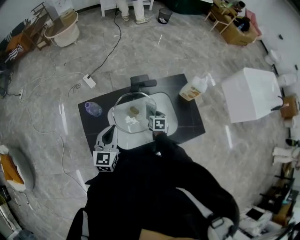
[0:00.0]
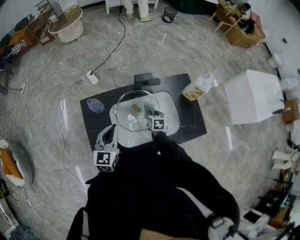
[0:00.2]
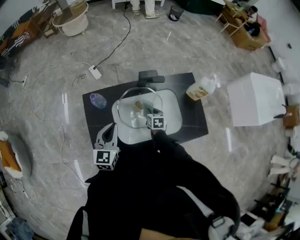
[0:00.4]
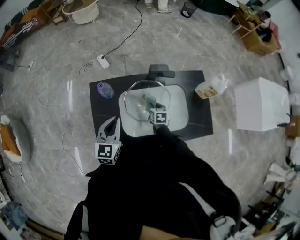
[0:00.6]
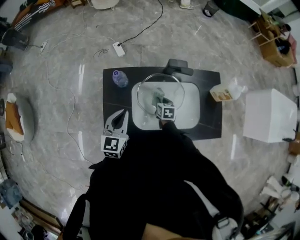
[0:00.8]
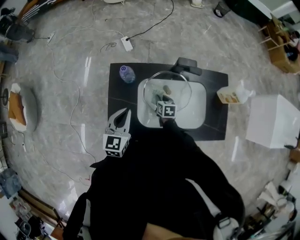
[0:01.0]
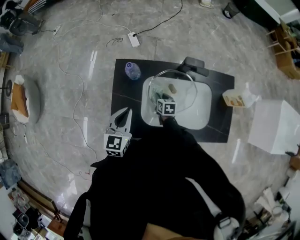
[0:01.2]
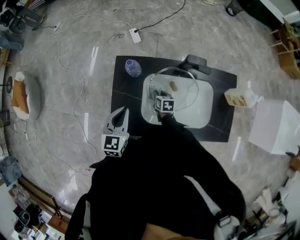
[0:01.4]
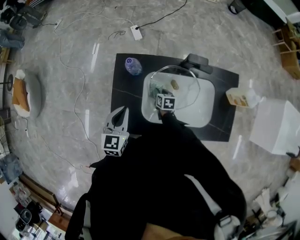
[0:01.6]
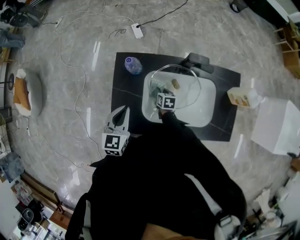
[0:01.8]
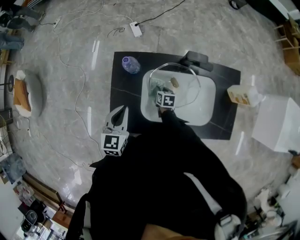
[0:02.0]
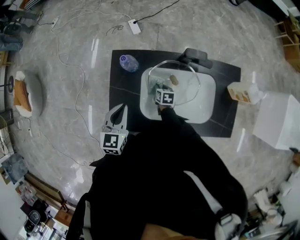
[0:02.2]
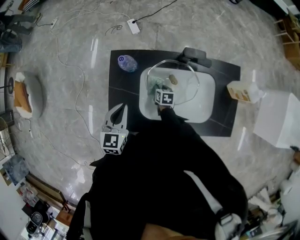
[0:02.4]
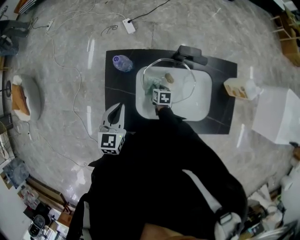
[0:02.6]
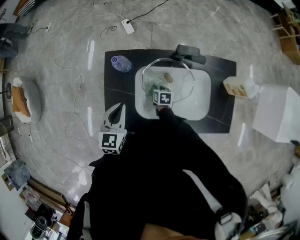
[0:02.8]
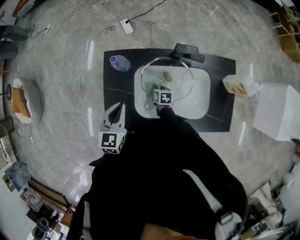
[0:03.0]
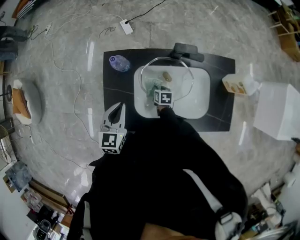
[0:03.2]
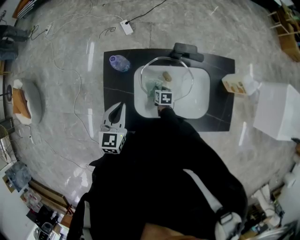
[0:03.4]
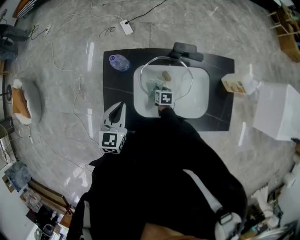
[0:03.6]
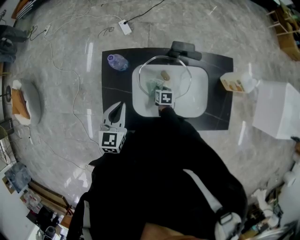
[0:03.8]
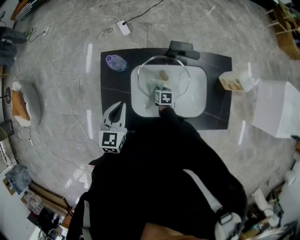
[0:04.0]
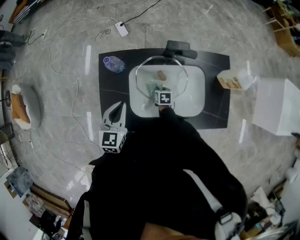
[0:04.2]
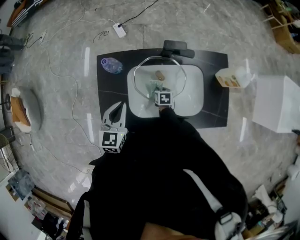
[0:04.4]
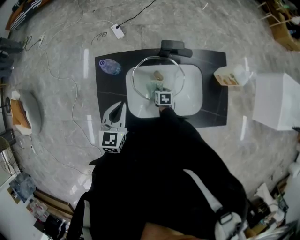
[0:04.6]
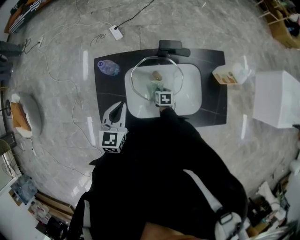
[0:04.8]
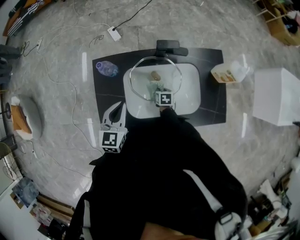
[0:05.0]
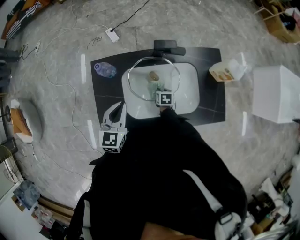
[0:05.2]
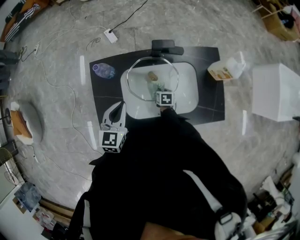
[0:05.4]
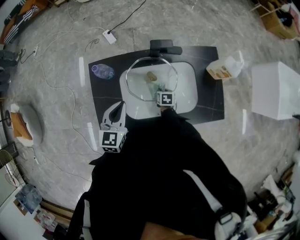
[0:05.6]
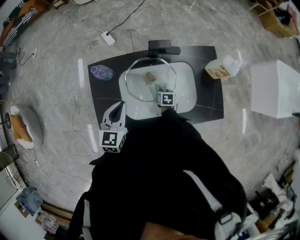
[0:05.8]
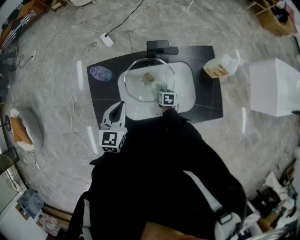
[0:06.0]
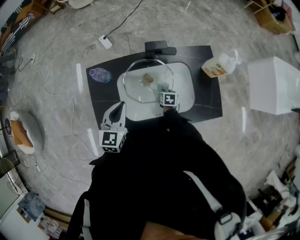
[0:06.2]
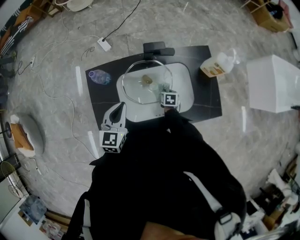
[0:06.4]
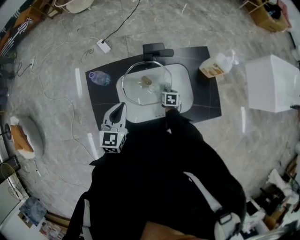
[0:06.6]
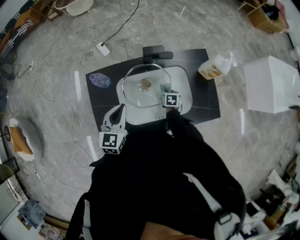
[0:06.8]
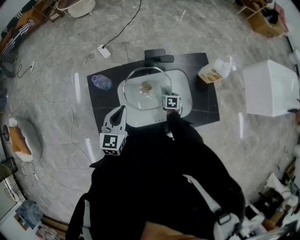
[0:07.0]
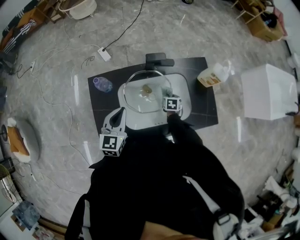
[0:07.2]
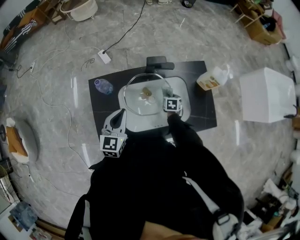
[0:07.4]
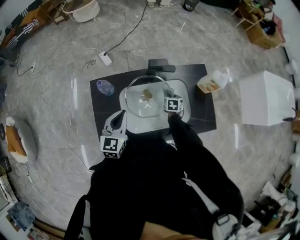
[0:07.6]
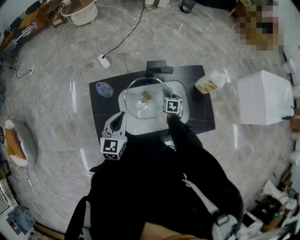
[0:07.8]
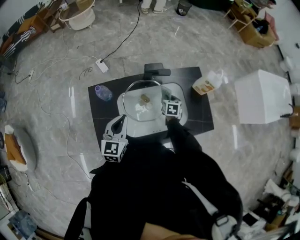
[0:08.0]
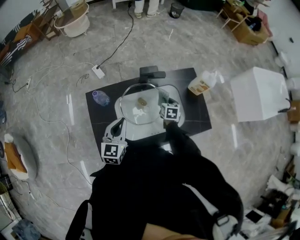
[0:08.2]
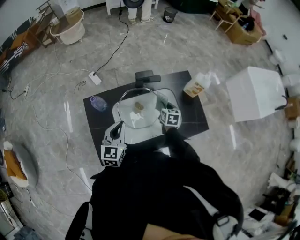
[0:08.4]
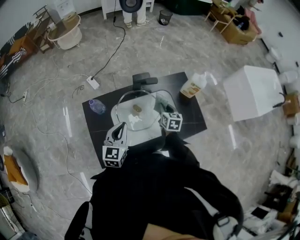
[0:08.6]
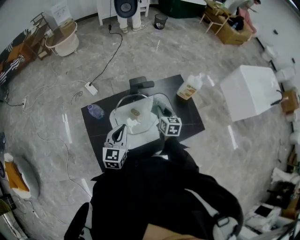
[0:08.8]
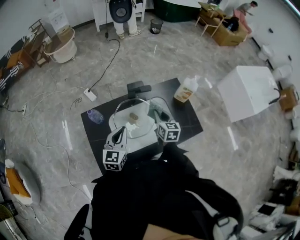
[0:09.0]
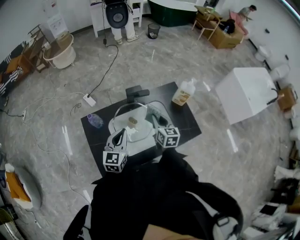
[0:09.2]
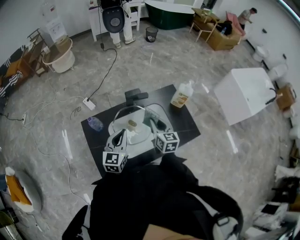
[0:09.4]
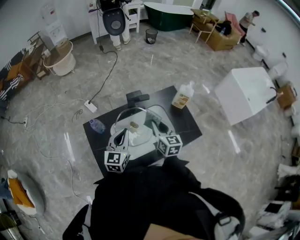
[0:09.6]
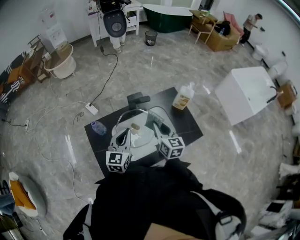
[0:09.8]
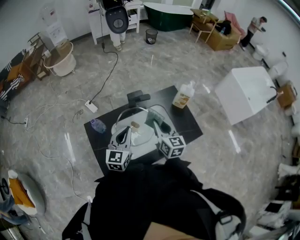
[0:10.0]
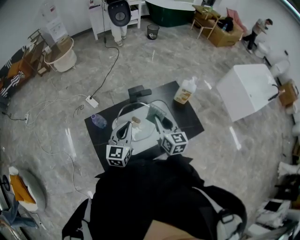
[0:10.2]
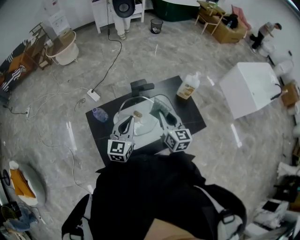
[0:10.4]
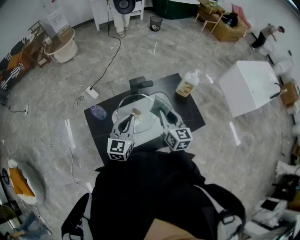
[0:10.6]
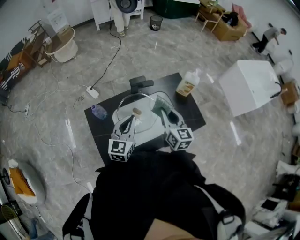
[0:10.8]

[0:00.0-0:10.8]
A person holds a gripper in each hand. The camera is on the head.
0:00.0 to 0:01.6: The right gripper moves about 20 cm, and rotates approximately 30 degrees, while the left gripper ends up approximately 10 cm from where it was, and changes its angle by approximately 20 degrees.
0:01.6 to 0:03.0: The right gripper moves approximately 5 cm.
0:03.0 to 0:04.6: There are only small adjustments of the grippers.
0:04.6 to 0:06.2: The right gripper shifts about 10 cm to the right.
0:06.2 to 0:07.8: The right gripper travels upward and forward by approximately 10 cm.
0:07.8 to 0:09.2: The left gripper goes about 5 cm to the right. The right gripper is displaced upward by some 20 cm, and tilts its fingers approximately 30 degrees upward.
0:09.2 to 0:10.8: The right gripper travels upward by about 10 cm.

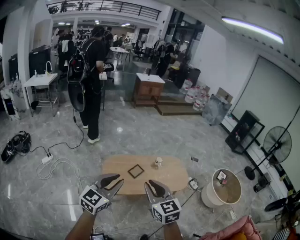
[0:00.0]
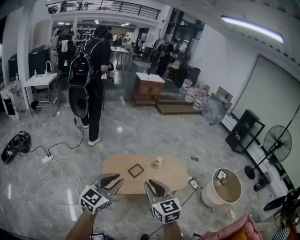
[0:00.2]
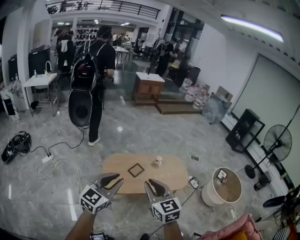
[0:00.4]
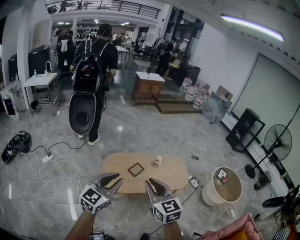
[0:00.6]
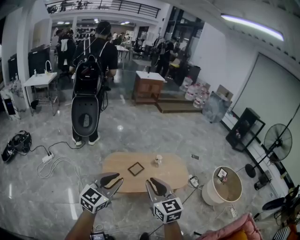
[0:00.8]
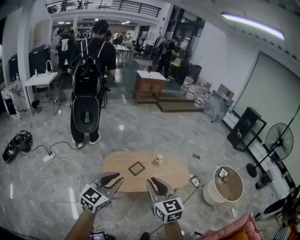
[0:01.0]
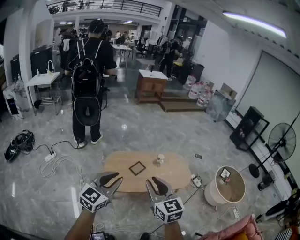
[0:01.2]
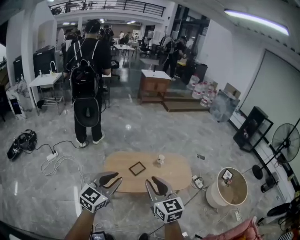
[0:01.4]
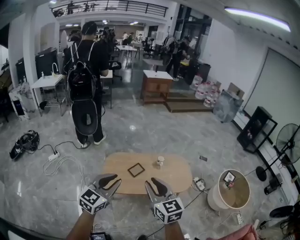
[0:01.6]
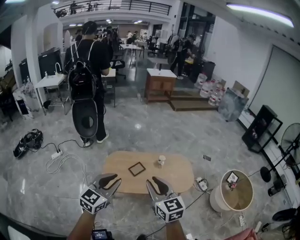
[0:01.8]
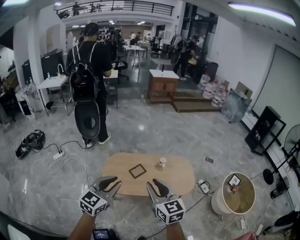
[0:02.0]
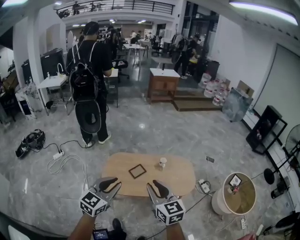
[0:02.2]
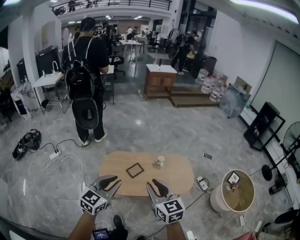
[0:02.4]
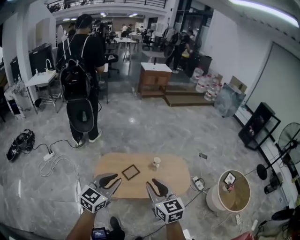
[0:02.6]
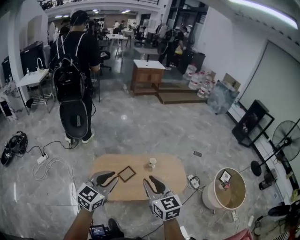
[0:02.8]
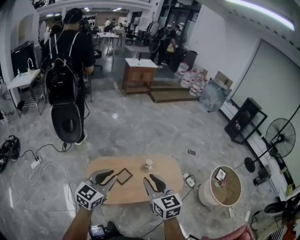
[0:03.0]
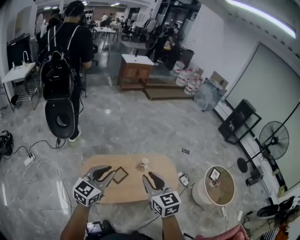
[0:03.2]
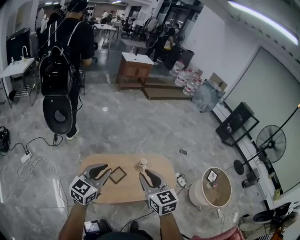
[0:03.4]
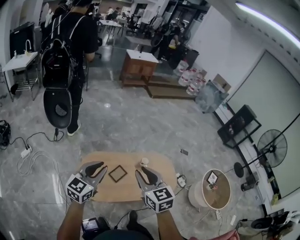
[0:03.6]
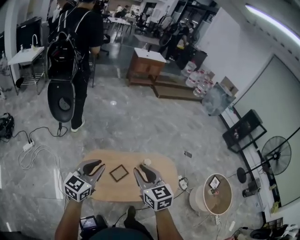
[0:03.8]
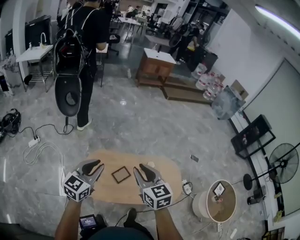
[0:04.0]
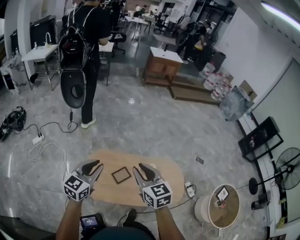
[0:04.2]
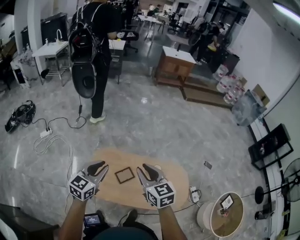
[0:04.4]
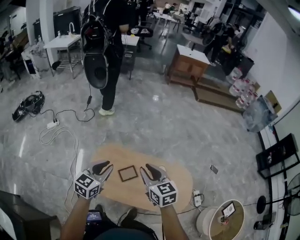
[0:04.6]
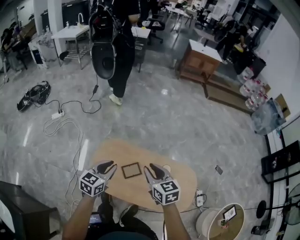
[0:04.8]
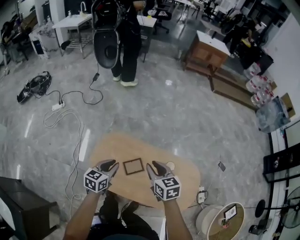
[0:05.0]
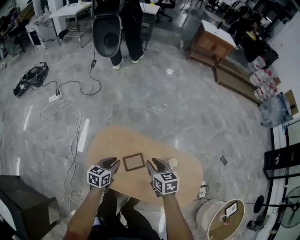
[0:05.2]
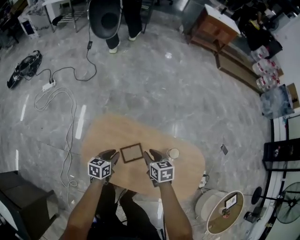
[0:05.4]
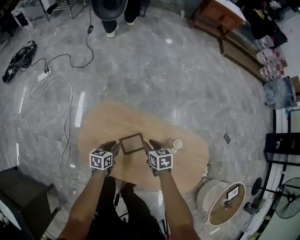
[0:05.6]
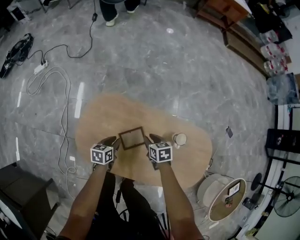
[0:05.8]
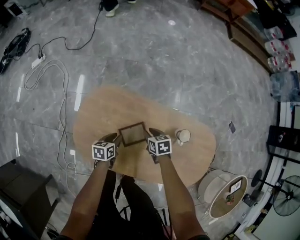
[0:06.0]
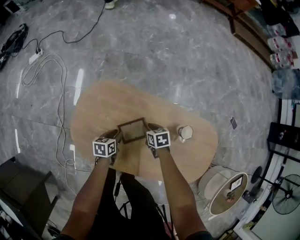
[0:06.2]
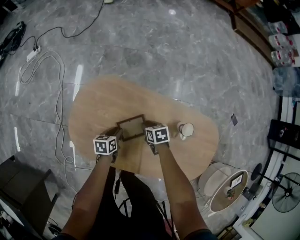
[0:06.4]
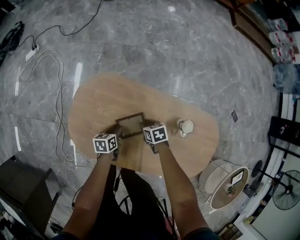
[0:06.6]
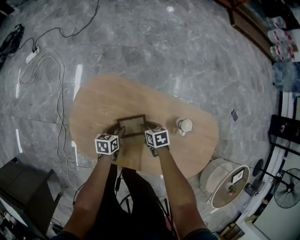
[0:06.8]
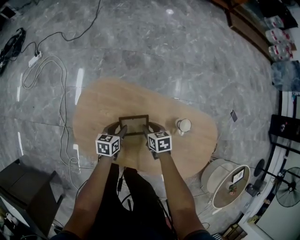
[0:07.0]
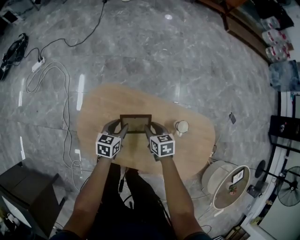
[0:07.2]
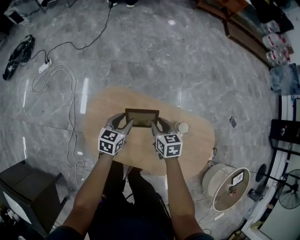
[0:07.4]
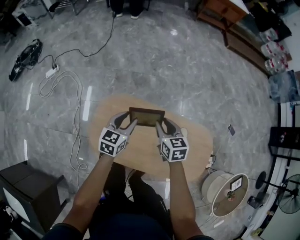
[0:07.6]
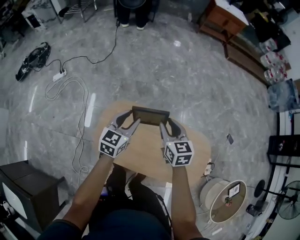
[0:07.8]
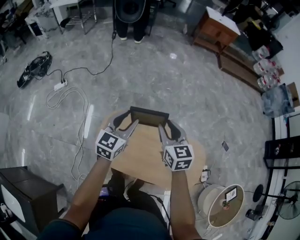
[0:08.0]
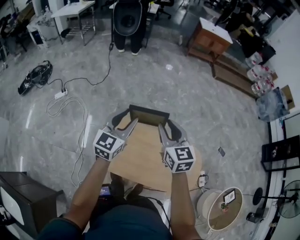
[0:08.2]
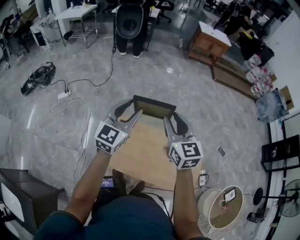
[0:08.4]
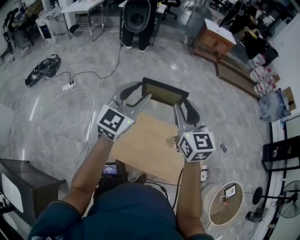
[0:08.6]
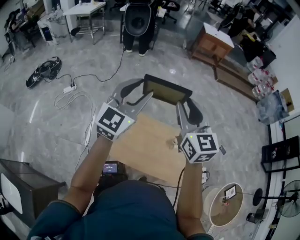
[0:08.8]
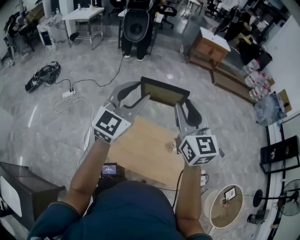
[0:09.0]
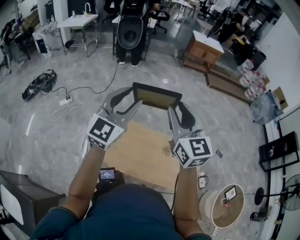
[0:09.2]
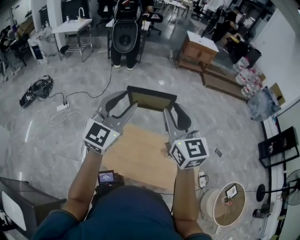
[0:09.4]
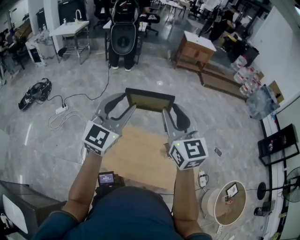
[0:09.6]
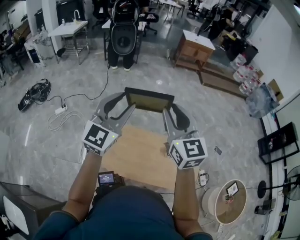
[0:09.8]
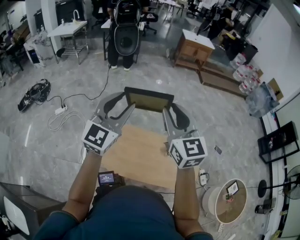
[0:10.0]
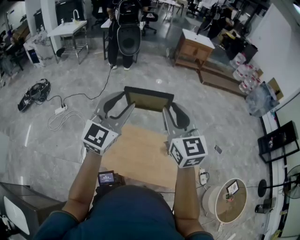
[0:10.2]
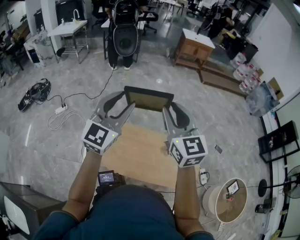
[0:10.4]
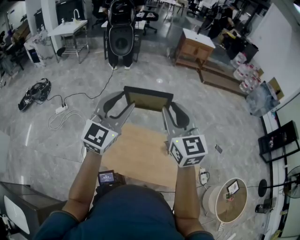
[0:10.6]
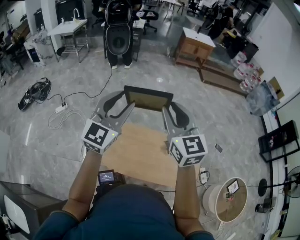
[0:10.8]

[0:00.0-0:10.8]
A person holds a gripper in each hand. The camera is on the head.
0:00.0 to 0:01.6: Both grippers travel together to the right, about 10 cm.
0:01.6 to 0:03.0: Both grippers travel together forward, approximately 20 cm.
0:03.0 to 0:04.6: The right gripper ends up about 25 cm from where it was, and turns by roughly 30 degrees; the left gripper shifts by approximately 20 cm, and rotates approximately 30 degrees.
0:04.6 to 0:06.2: Both grippers move downward, some 60 cm. The left gripper rotates some 50 degrees; the right gripper tips its fingers downward by about 40 degrees.
0:06.2 to 0:07.8: Both grippers travel together upward, some 40 cm. The right gripper rotates approximately 40 degrees. Meanwhile the left gripper changes its angle by some 50 degrees.
0:07.8 to 0:09.2: The grippers both shift upward by about 40 cm. The left gripper rotates some 40 degrees, while the right gripper changes its angle by approximately 30 degrees.
0:09.2 to 0:10.8: Neither gripper changes place.

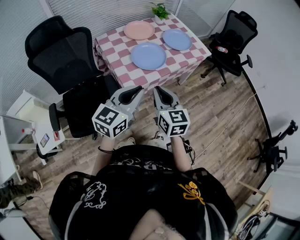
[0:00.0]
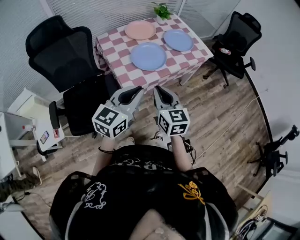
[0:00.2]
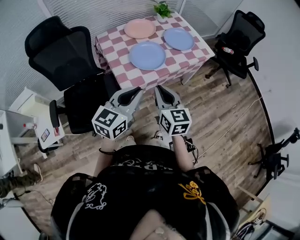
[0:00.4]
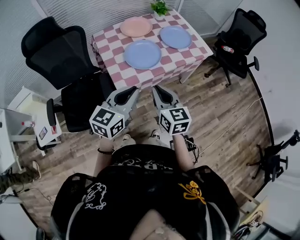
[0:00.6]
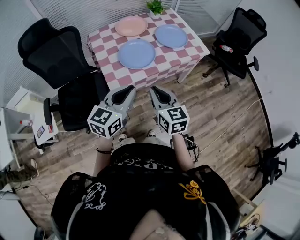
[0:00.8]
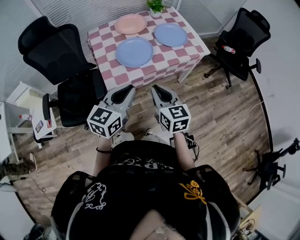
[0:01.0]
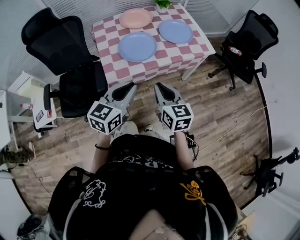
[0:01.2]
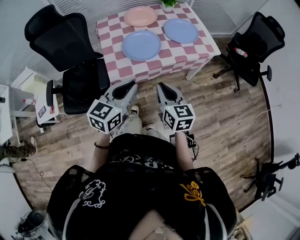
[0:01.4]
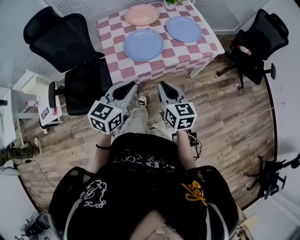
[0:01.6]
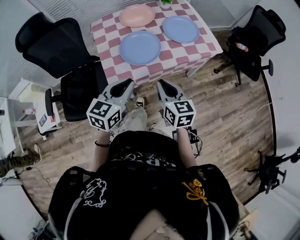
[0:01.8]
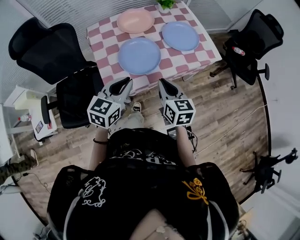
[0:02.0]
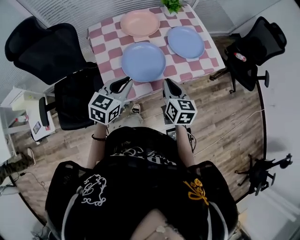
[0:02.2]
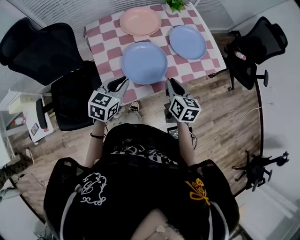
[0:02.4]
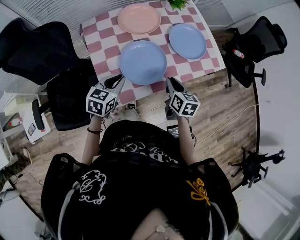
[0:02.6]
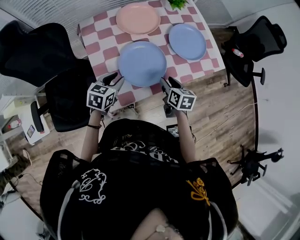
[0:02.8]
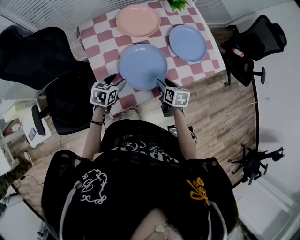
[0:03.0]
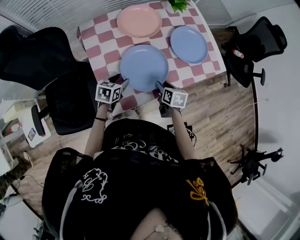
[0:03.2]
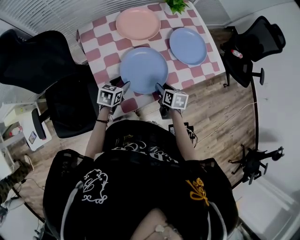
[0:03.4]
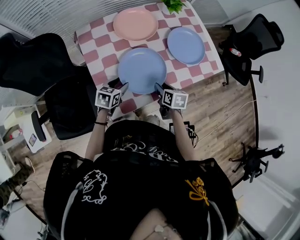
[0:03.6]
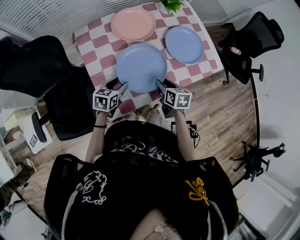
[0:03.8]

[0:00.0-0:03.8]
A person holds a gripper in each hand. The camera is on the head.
0:00.0 to 0:01.2: Both grippers move to the right, approximately 15 cm.
0:01.2 to 0:02.6: The right gripper is displaced forward and downward by some 25 cm, and turns by roughly 30 degrees; the left gripper shifts about 30 cm forward, downward and to the left.
0:02.6 to 0:03.8: The two grippers go roughly 5 cm downward. The left gripper opens up; the right gripper opens its fingers.
